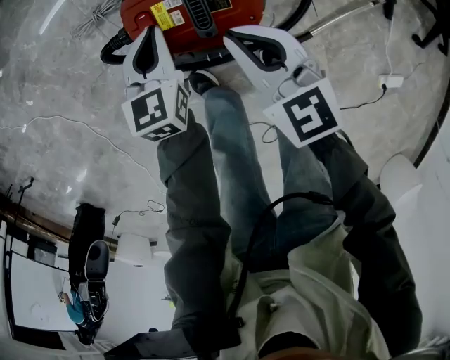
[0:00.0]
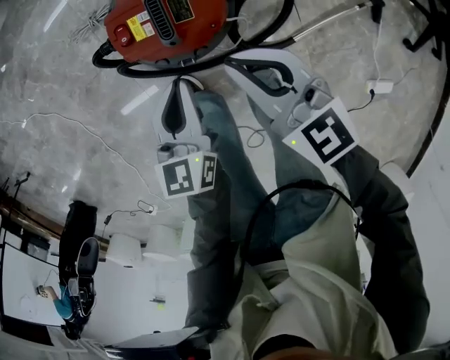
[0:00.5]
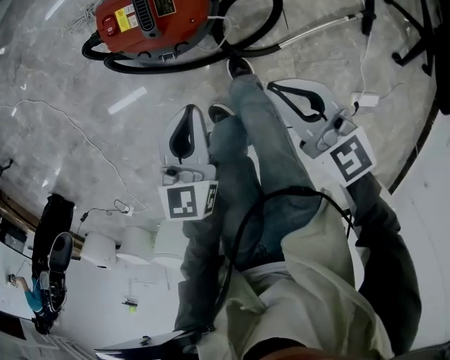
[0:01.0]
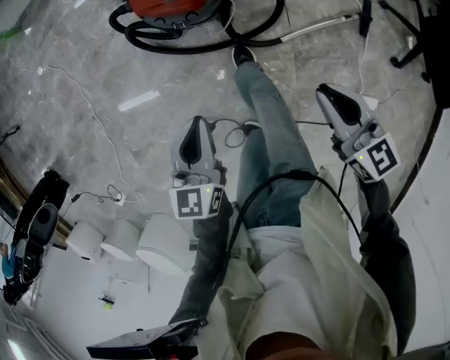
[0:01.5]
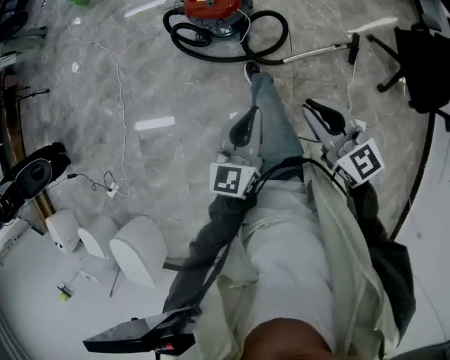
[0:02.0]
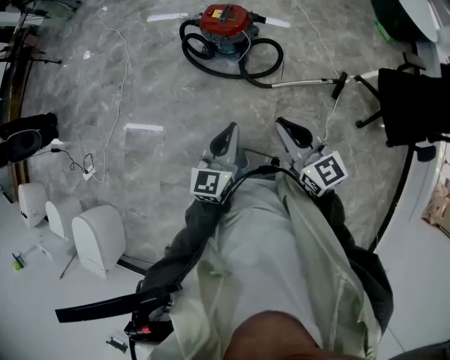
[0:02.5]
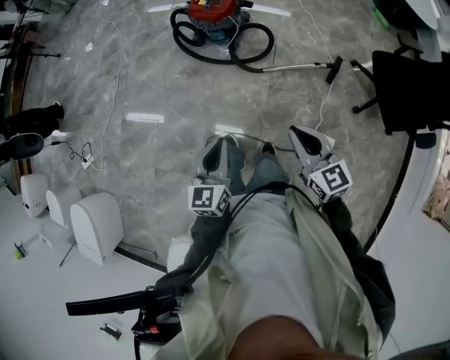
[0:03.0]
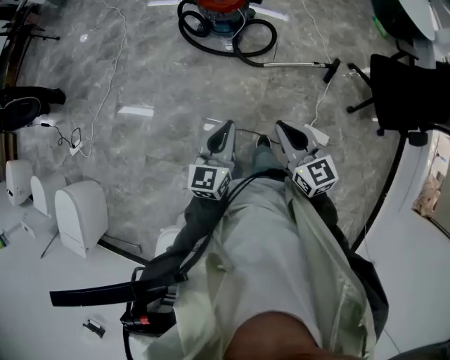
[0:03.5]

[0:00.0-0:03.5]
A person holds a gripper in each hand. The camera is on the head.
0:00.0 to 0:02.0: Both grippers are carried backward, about 60 cm. The two grippers go roughly 40 cm upward. The left gripper changes its angle by approximately 30 degrees. The right gripper turns by approximately 20 degrees.
0:02.0 to 0:03.5: Both grippers travel together backward, roughly 25 cm.

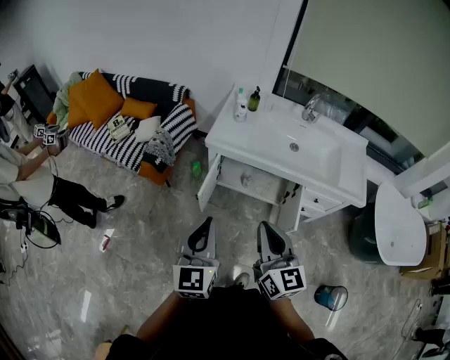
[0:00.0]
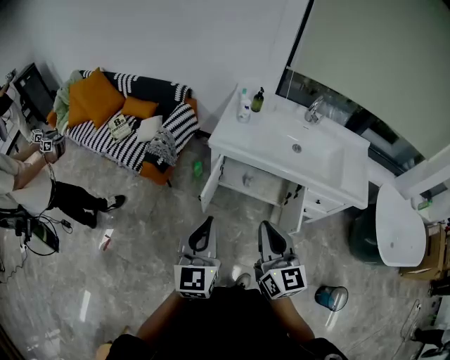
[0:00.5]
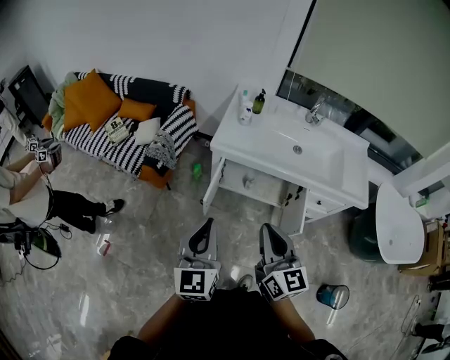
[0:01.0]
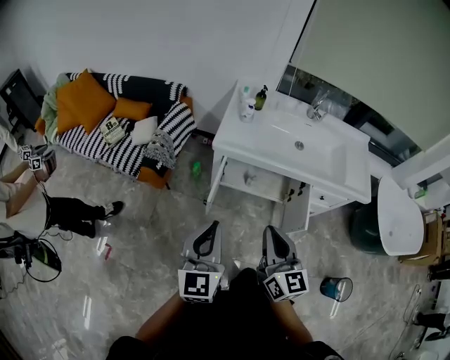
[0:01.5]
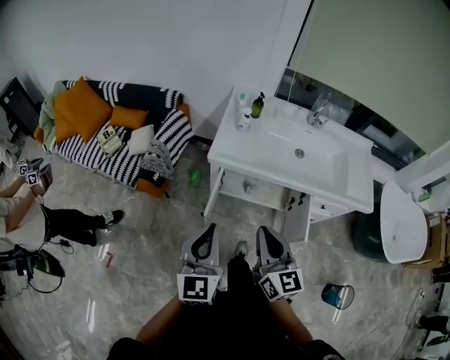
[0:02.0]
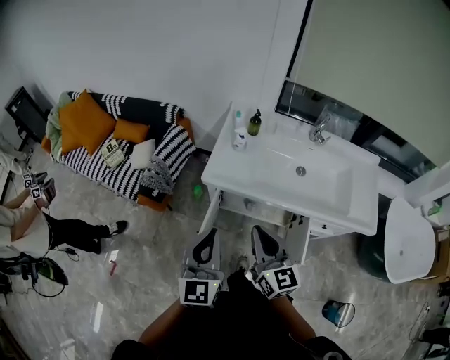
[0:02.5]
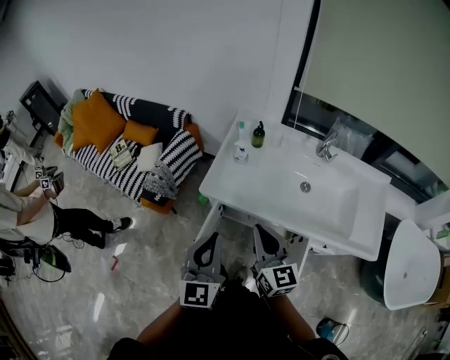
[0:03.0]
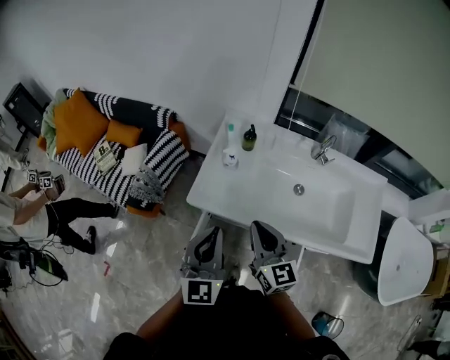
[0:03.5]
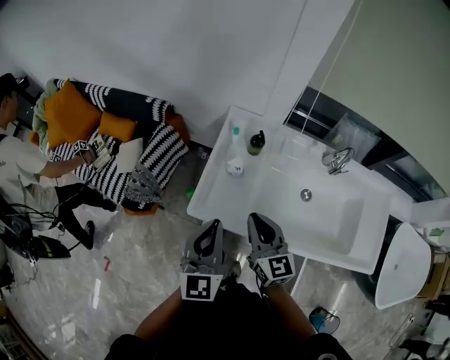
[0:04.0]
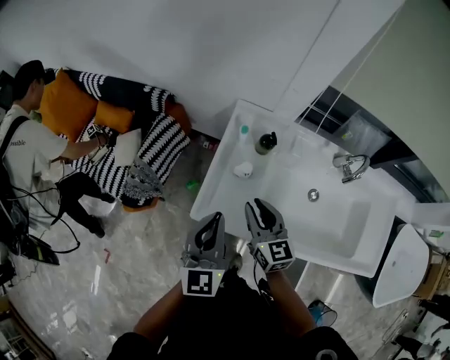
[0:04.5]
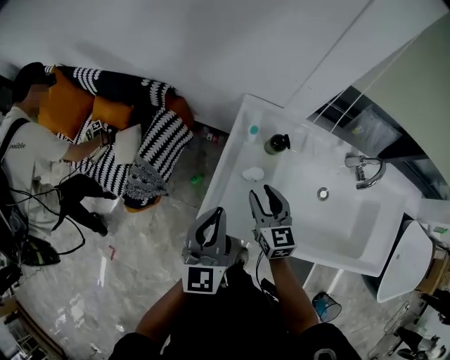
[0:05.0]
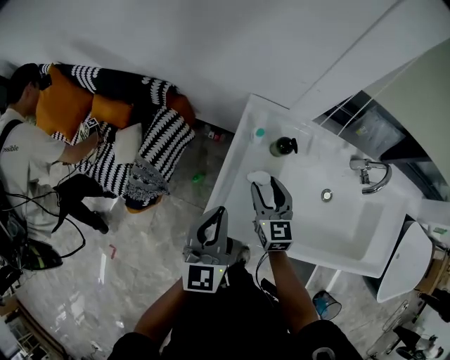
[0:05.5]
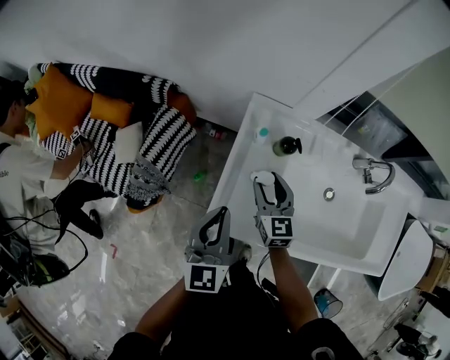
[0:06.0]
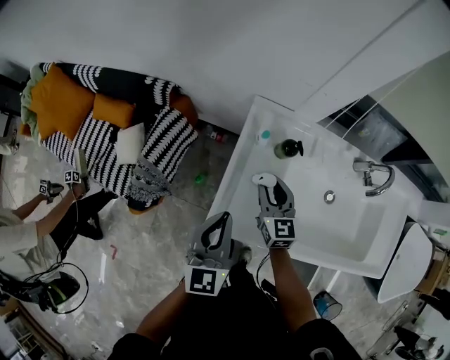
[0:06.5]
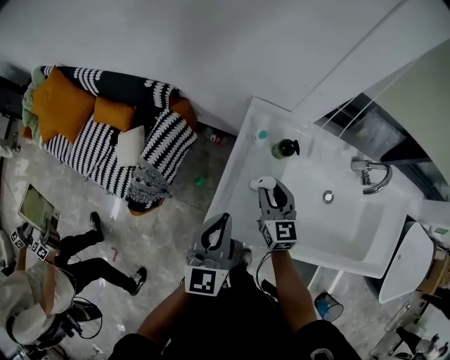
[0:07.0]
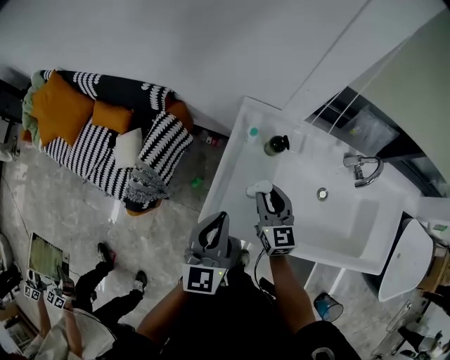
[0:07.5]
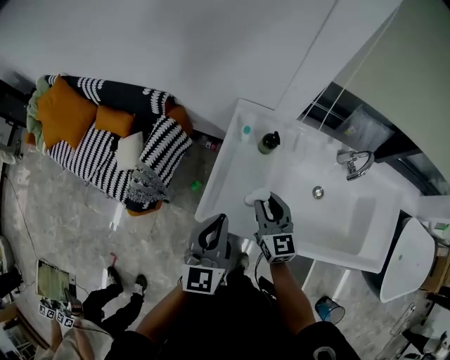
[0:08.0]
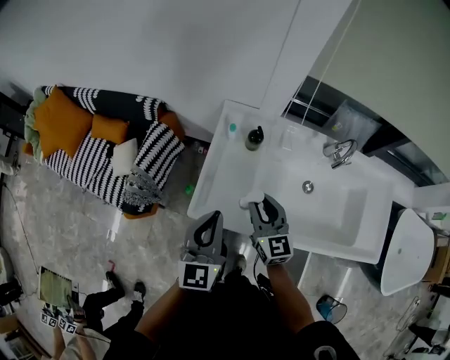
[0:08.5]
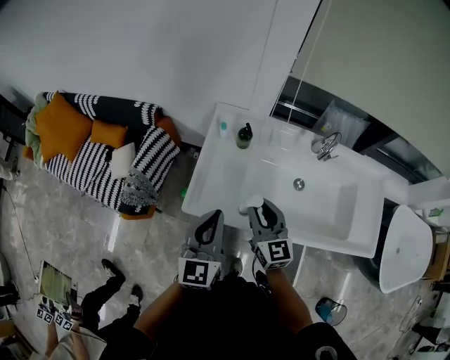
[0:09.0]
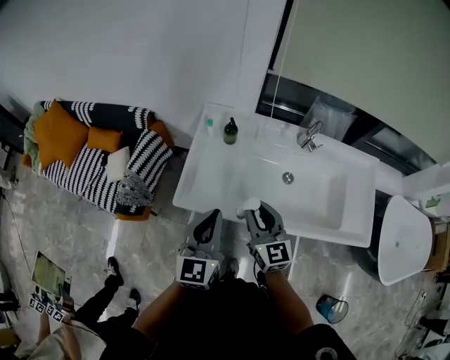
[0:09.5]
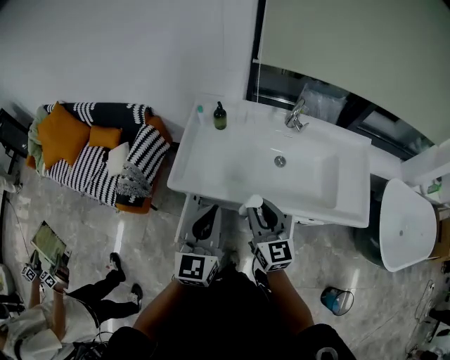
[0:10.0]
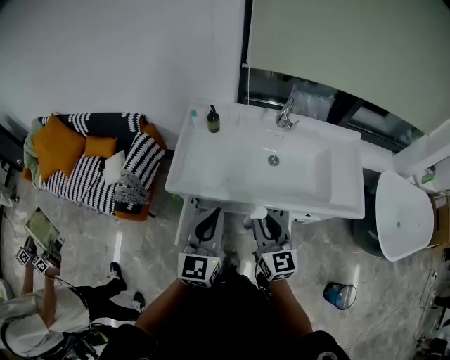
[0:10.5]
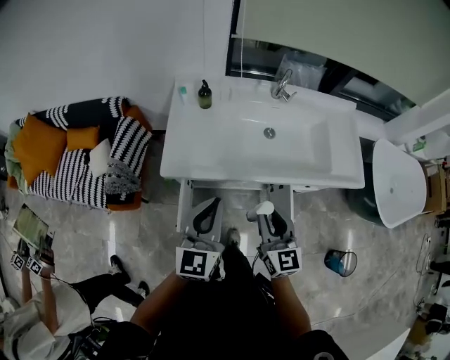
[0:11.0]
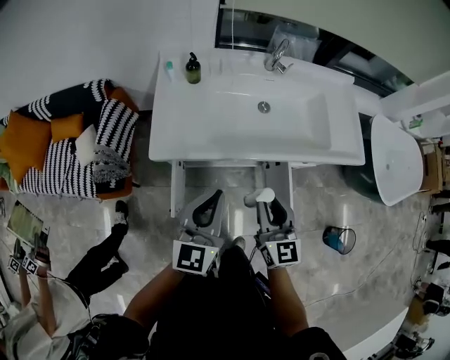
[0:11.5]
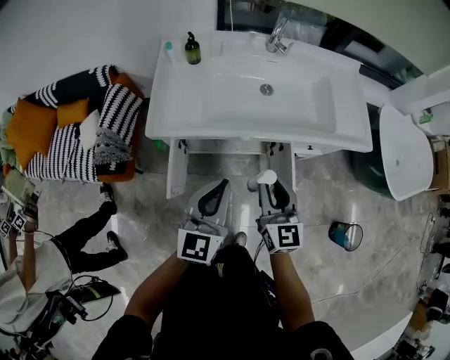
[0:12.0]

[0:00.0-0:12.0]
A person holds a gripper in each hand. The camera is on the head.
0:00.0 to 0:02.0: The left gripper is displaced forward by roughly 10 cm; the right gripper heads forward, to the left and downward, covering roughly 15 cm.
0:02.0 to 0:04.0: The right gripper heads forward, covering roughly 35 cm. Meanwhile the left gripper travels forward and to the right by roughly 35 cm.
0:04.0 to 0:06.0: The left gripper travels forward, downward and to the left by some 15 cm. The right gripper travels forward and downward by roughly 25 cm, and opens its fingers.
0:06.0 to 0:08.0: The right gripper shifts some 10 cm backward and upward, and closes up; the left gripper is displaced backward by some 5 cm.
0:08.0 to 0:10.0: The left gripper travels backward and to the right by some 25 cm. The right gripper shifts about 30 cm backward, to the right and upward.
0:10.0 to 0:12.0: The two grippers go approximately 15 cm backward and downward.

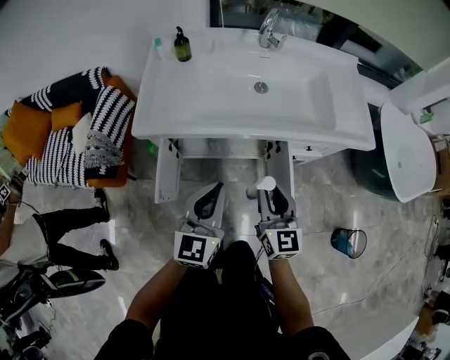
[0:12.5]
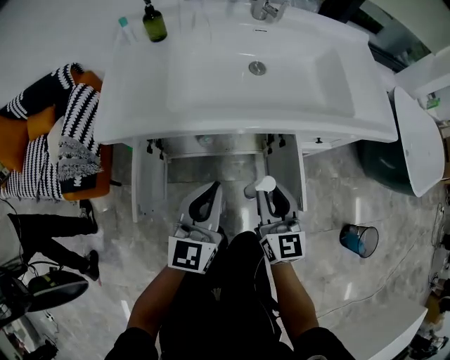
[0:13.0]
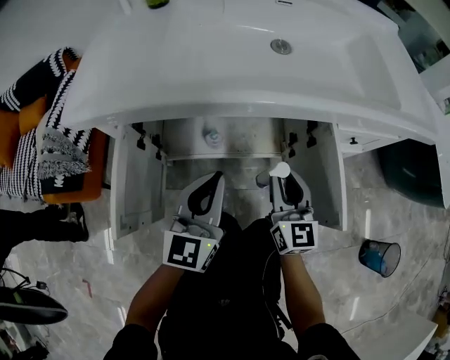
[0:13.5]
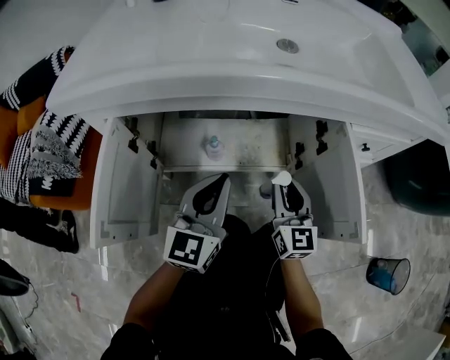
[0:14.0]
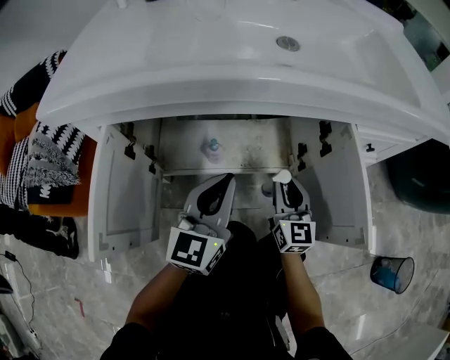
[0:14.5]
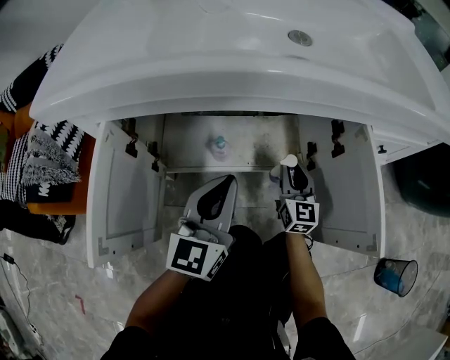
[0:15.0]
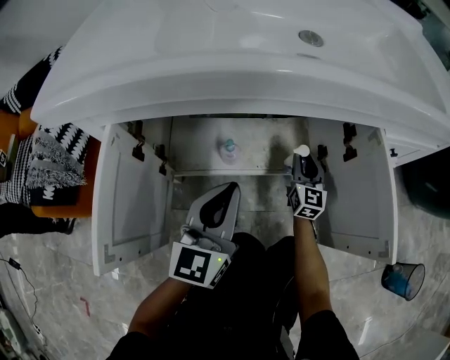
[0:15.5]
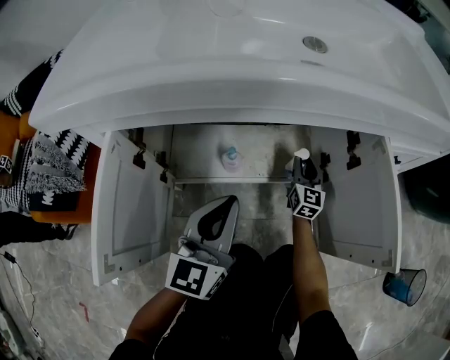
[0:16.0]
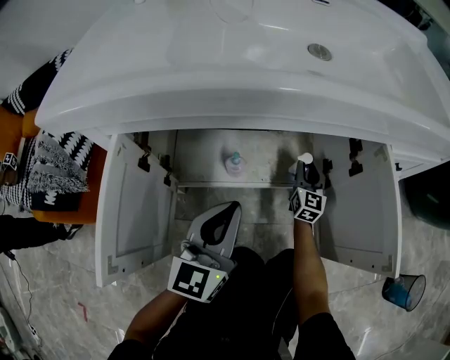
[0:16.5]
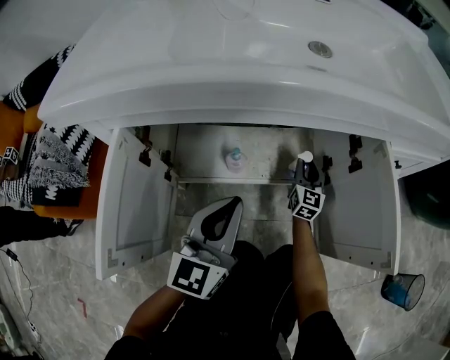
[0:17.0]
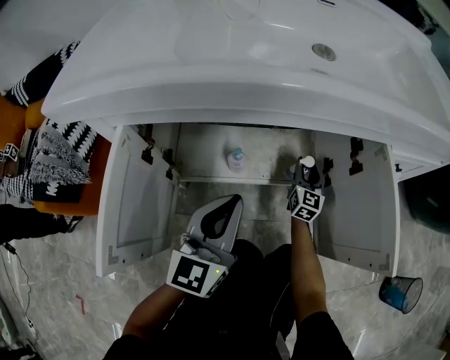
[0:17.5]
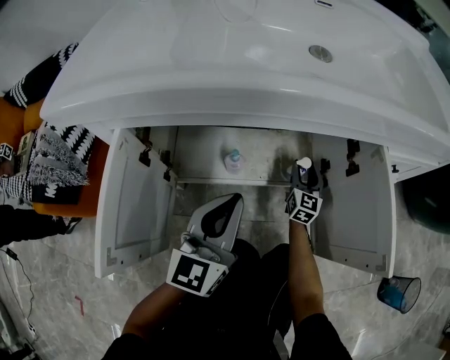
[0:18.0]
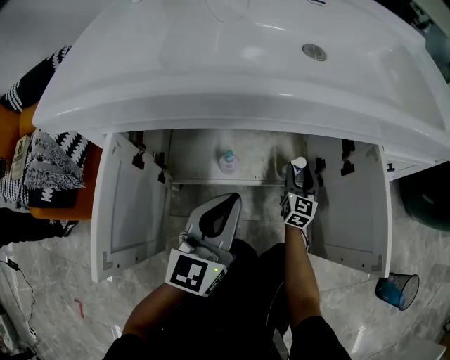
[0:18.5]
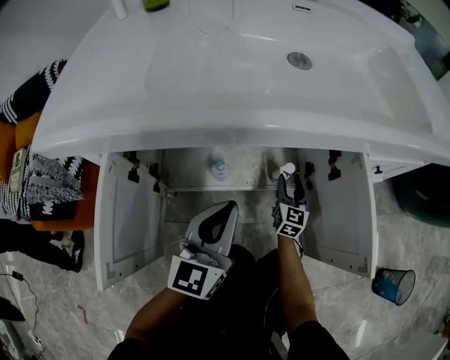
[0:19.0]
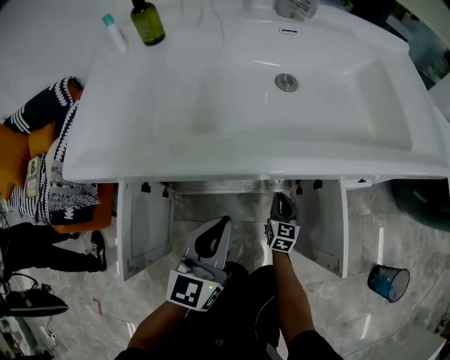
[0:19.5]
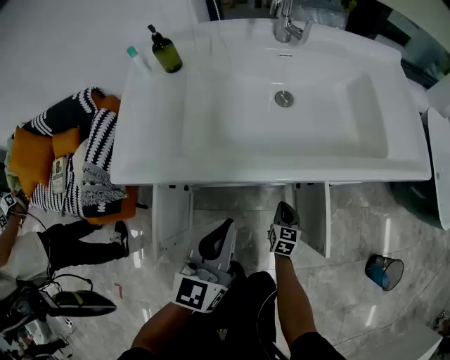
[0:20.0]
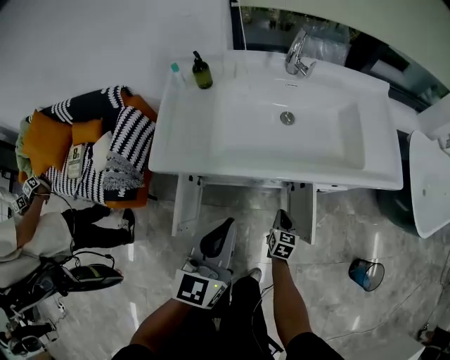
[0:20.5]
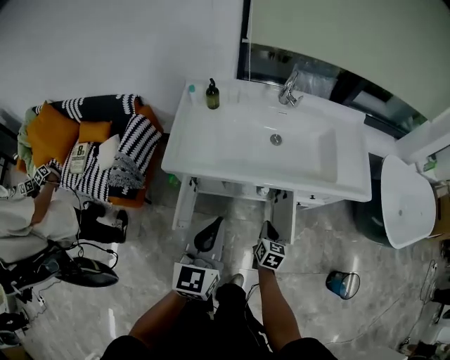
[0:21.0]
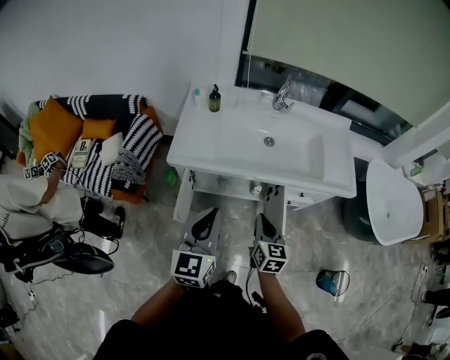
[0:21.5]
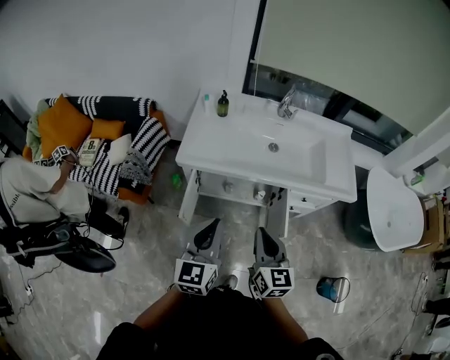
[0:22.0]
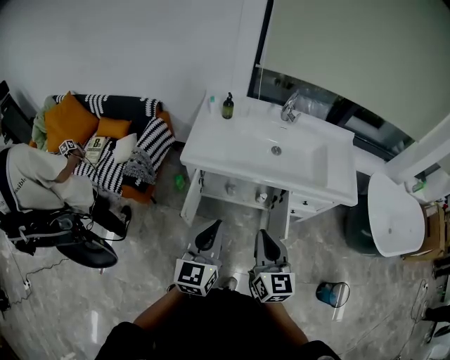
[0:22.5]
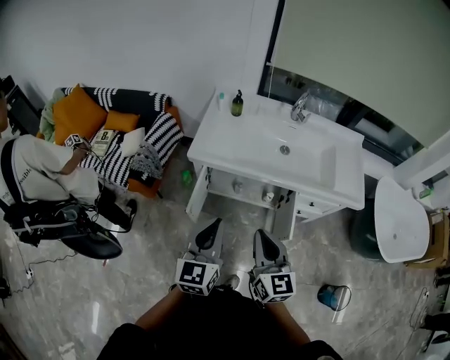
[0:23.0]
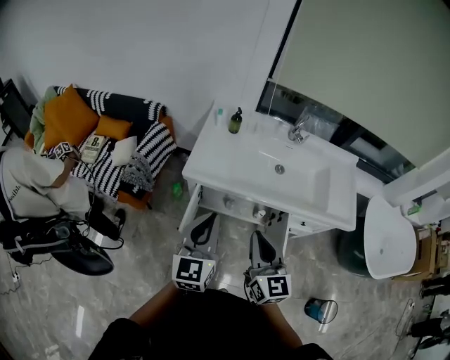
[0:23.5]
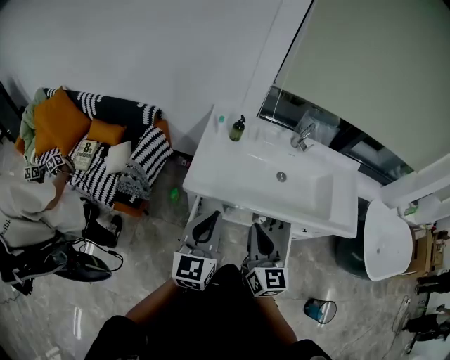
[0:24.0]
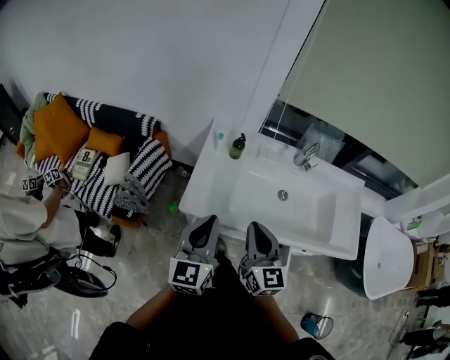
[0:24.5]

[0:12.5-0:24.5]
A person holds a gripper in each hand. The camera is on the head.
0:12.5 to 0:14.5: The grippers both shift downward by some 40 cm.
0:14.5 to 0:16.5: The right gripper is displaced forward and downward by about 20 cm.
0:16.5 to 0:18.5: The right gripper opens up.
0:18.5 to 0:20.5: The left gripper goes about 40 cm upward. Meanwhile the right gripper is displaced upward and backward by some 35 cm, turns by approximately 30 degrees, and closes.
0:20.5 to 0:22.5: The left gripper shifts about 20 cm backward and upward. Meanwhile the right gripper travels upward and backward by about 50 cm, and angles its fingers upward, by approximately 30 degrees.
0:22.5 to 0:24.5: Both grippers travel together forward, approximately 25 cm.
